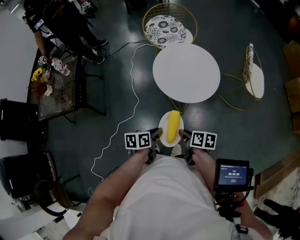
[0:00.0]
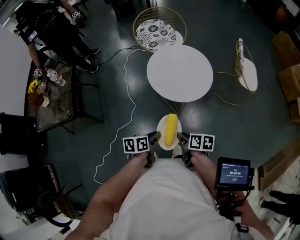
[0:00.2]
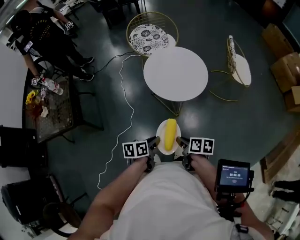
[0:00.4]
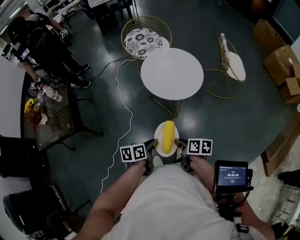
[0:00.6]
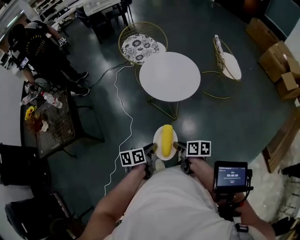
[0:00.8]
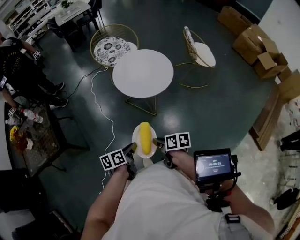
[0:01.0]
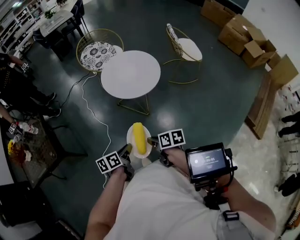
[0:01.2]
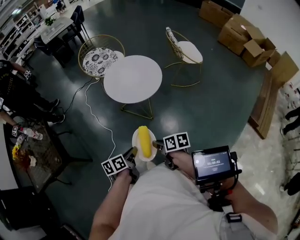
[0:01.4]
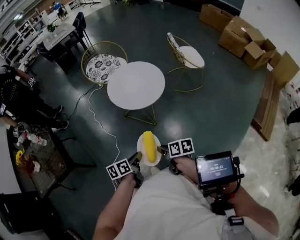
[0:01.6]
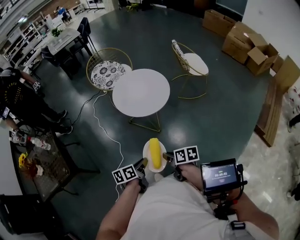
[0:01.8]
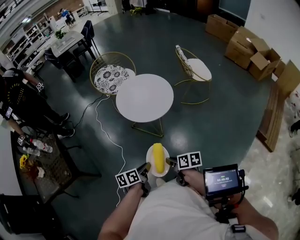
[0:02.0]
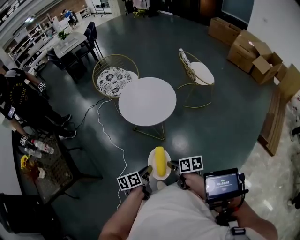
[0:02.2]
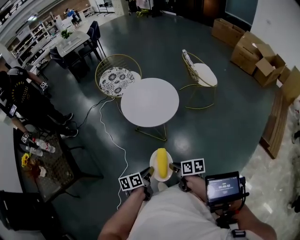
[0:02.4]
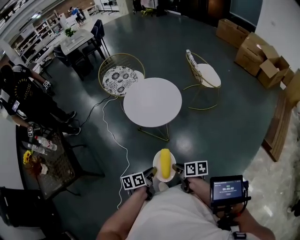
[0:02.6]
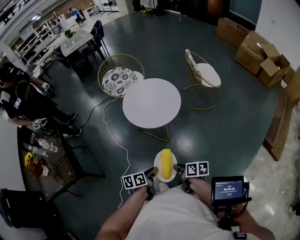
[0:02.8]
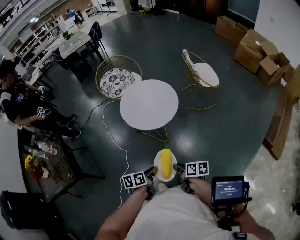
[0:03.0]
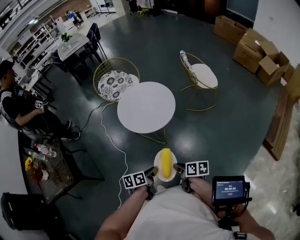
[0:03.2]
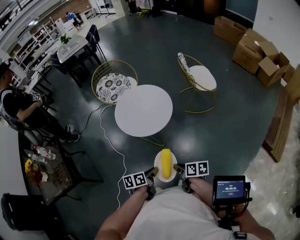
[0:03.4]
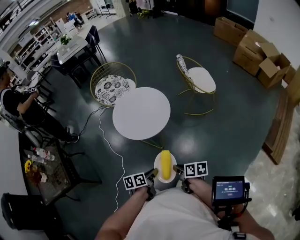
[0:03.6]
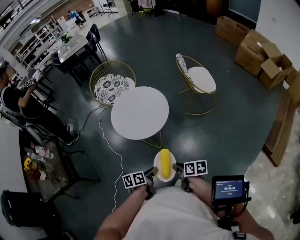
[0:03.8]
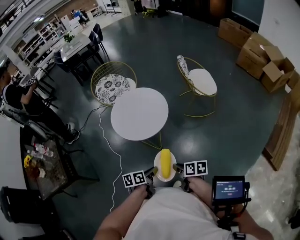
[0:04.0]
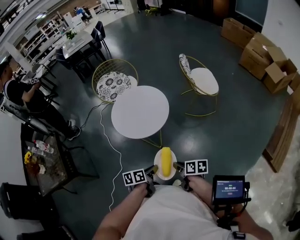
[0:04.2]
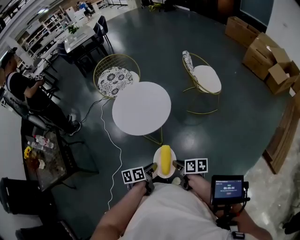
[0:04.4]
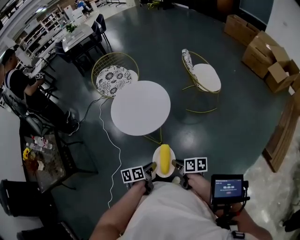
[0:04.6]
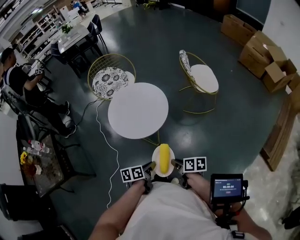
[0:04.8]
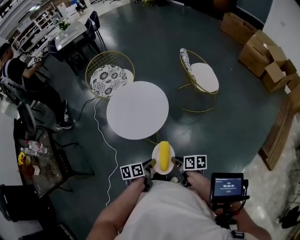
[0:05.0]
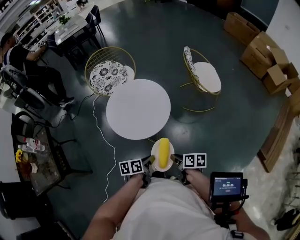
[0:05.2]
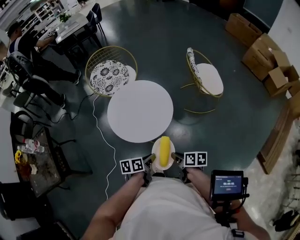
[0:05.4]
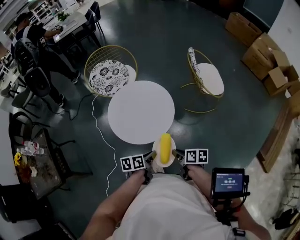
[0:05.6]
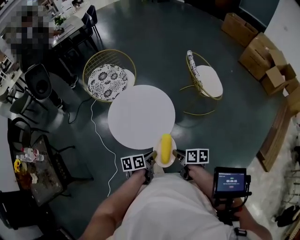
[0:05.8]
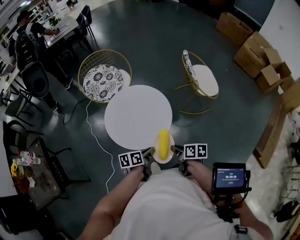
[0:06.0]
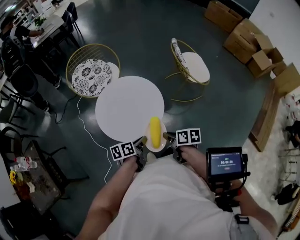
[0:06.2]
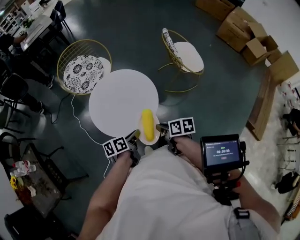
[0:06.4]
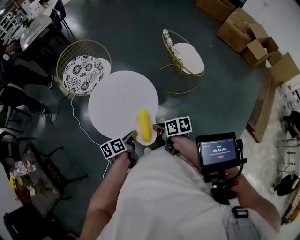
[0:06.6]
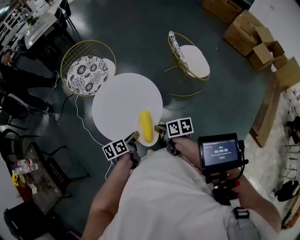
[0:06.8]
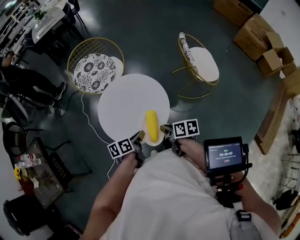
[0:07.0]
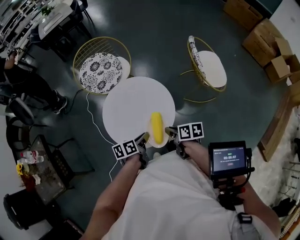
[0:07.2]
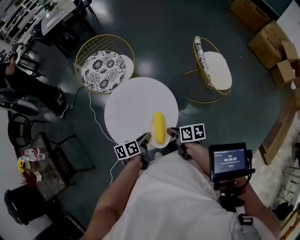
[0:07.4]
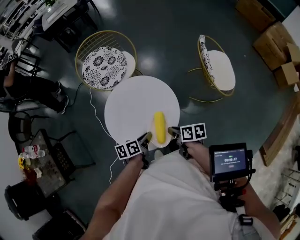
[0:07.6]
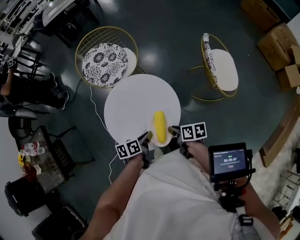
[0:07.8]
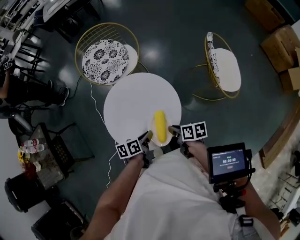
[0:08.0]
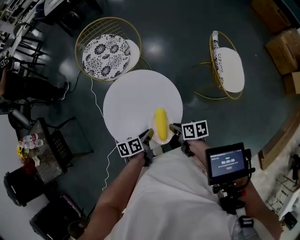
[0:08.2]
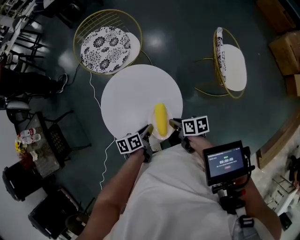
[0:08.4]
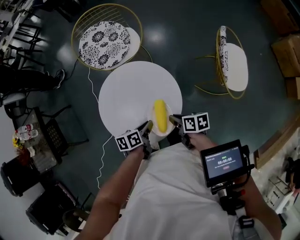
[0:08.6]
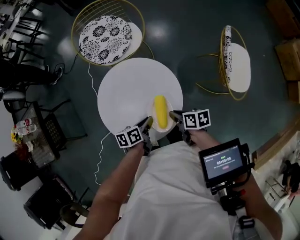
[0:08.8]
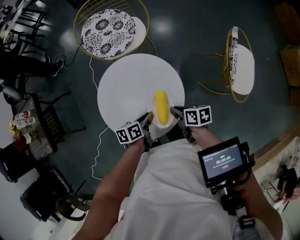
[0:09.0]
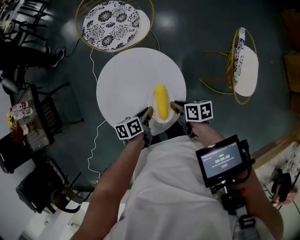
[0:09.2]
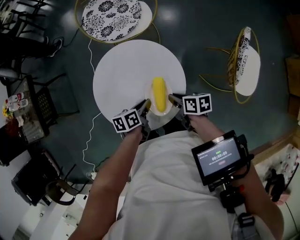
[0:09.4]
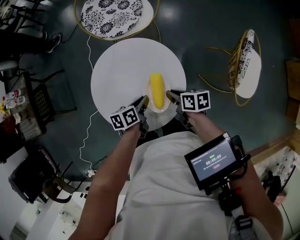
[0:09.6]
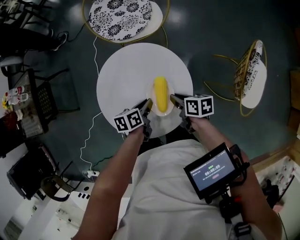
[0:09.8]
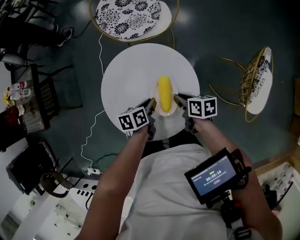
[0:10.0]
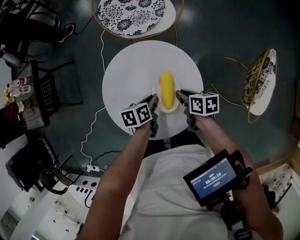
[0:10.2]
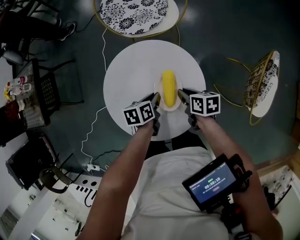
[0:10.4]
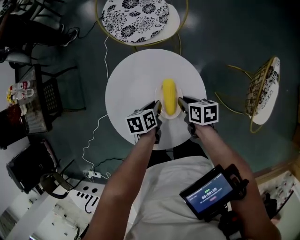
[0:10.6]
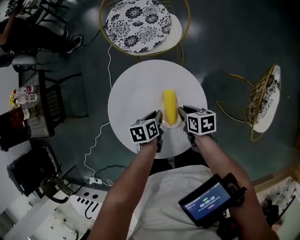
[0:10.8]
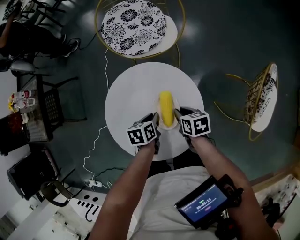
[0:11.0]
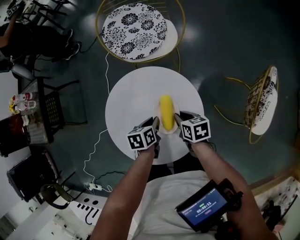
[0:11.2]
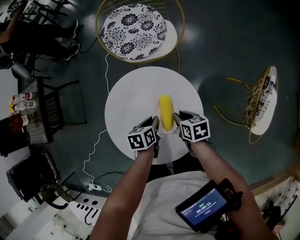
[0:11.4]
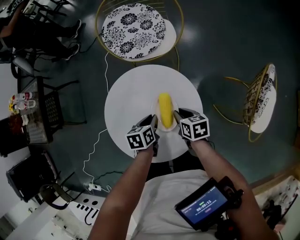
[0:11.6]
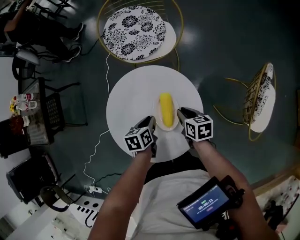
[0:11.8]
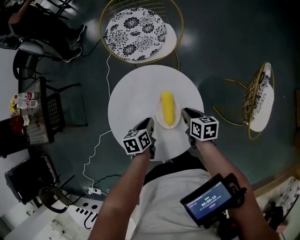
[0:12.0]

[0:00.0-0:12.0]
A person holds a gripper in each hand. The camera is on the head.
0:00.0 to 0:01.6: The left gripper heads backward and to the left, covering roughly 15 cm. The right gripper heads backward, covering some 15 cm.
0:01.6 to 0:03.0: The grippers both shift to the right by roughly 5 cm.
0:03.0 to 0:04.4: The two grippers go approximately 15 cm to the right and forward.
0:04.4 to 0:06.0: Both grippers travel together forward, some 20 cm.
0:06.0 to 0:07.6: Both grippers travel together forward, roughly 15 cm.
0:07.6 to 0:09.0: Both grippers move forward and downward, about 10 cm.
0:09.0 to 0:10.4: Both grippers travel together forward and downward, roughly 10 cm.
0:10.4 to 0:12.0: There are only small adjustments of the grippers.

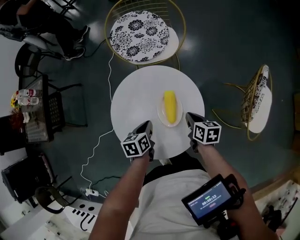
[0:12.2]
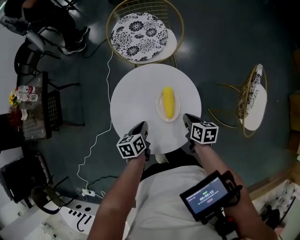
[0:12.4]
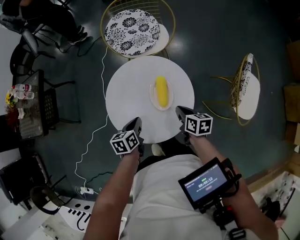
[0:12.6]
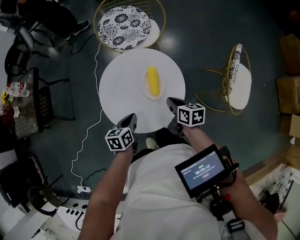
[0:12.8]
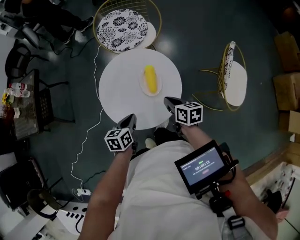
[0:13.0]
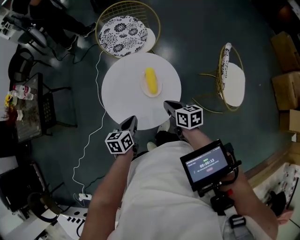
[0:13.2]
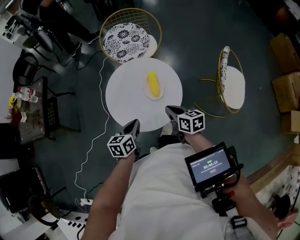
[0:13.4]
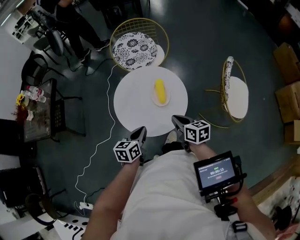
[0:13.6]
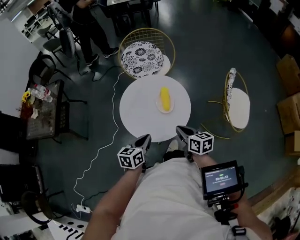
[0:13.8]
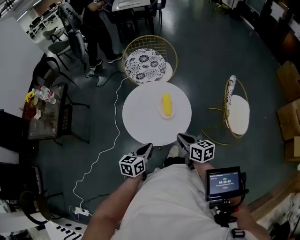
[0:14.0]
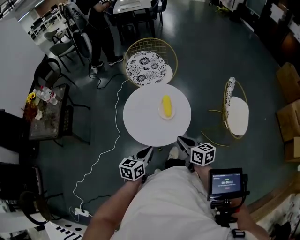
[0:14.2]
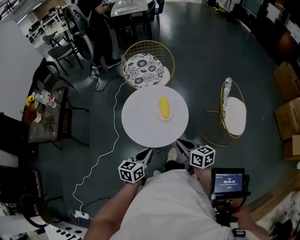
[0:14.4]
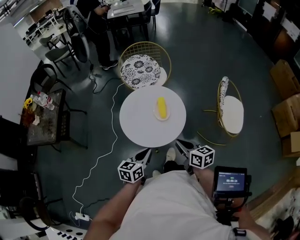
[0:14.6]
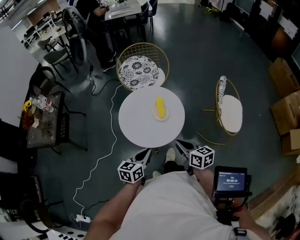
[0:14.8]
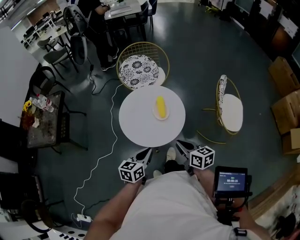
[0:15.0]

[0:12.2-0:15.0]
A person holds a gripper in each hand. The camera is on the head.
0:12.2 to 0:13.6: The two grippers go about 20 cm backward and upward. The left gripper swivels about 20 degrees.
0:13.6 to 0:15.0: The grippers both shift backward and upward by some 10 cm.

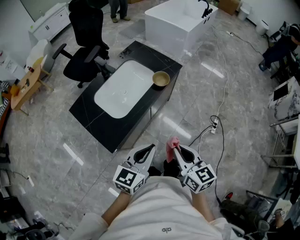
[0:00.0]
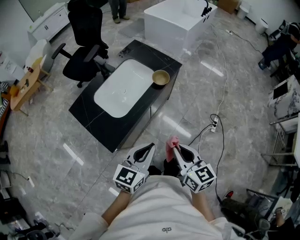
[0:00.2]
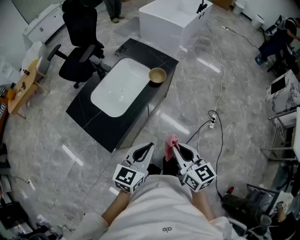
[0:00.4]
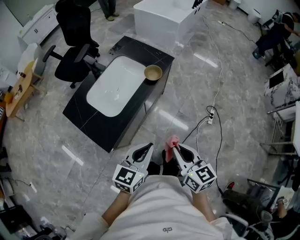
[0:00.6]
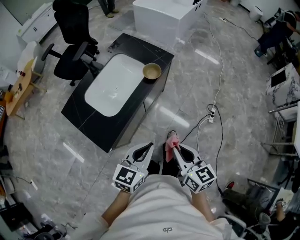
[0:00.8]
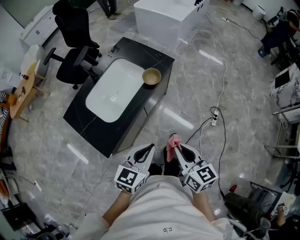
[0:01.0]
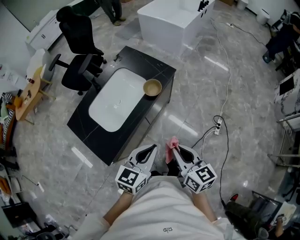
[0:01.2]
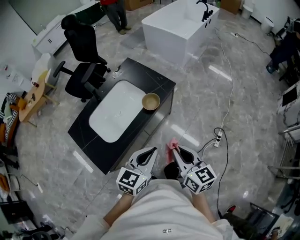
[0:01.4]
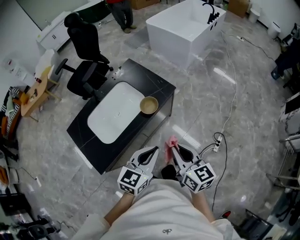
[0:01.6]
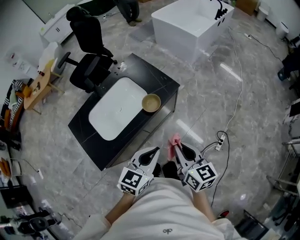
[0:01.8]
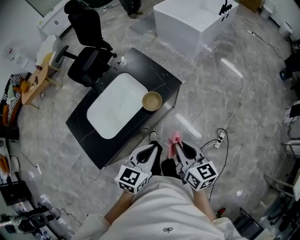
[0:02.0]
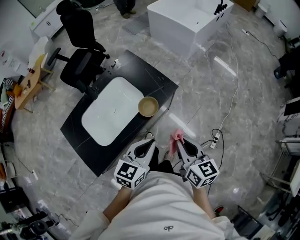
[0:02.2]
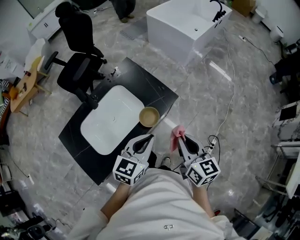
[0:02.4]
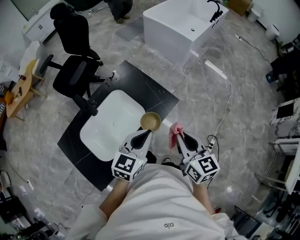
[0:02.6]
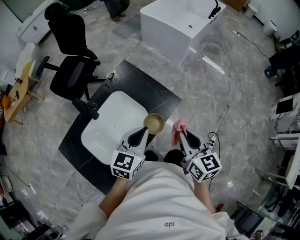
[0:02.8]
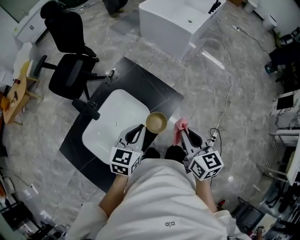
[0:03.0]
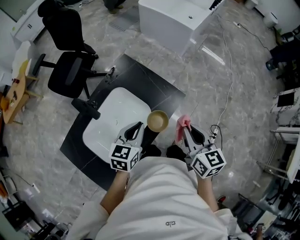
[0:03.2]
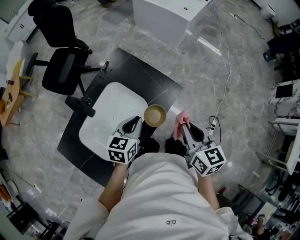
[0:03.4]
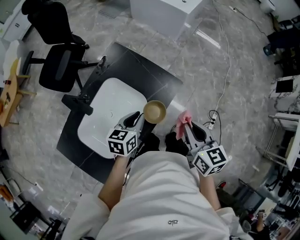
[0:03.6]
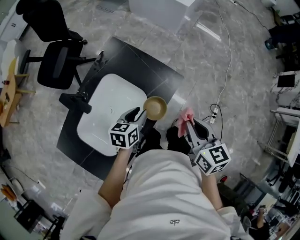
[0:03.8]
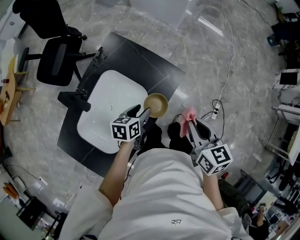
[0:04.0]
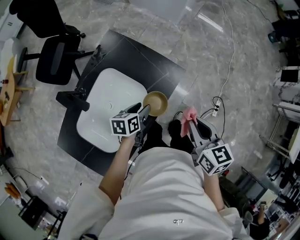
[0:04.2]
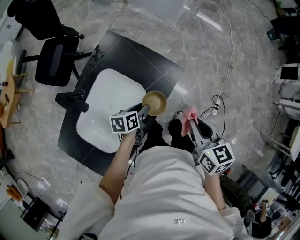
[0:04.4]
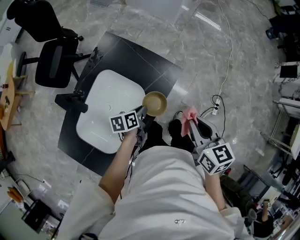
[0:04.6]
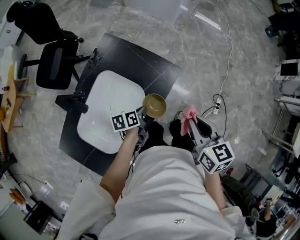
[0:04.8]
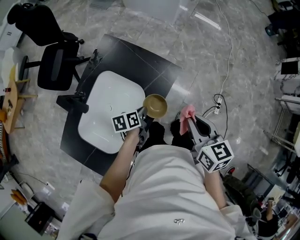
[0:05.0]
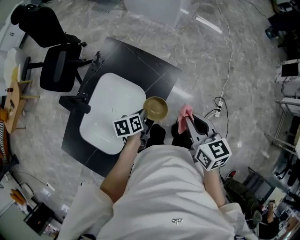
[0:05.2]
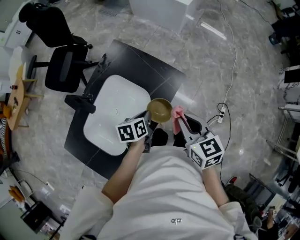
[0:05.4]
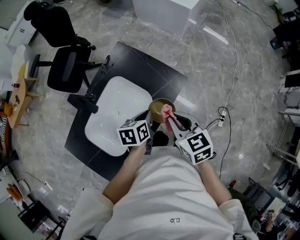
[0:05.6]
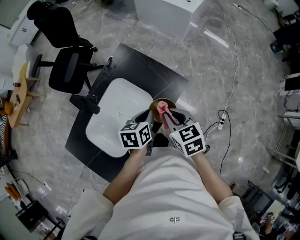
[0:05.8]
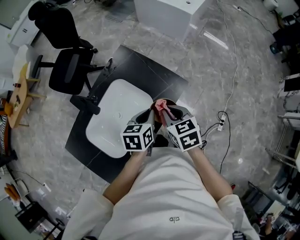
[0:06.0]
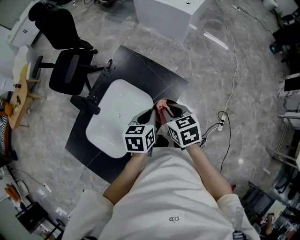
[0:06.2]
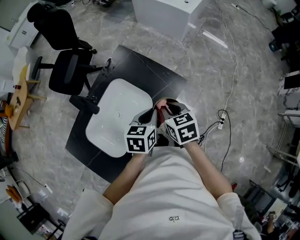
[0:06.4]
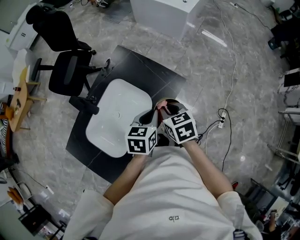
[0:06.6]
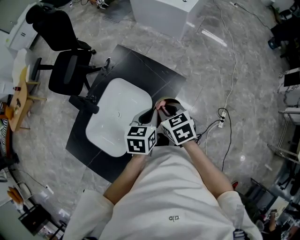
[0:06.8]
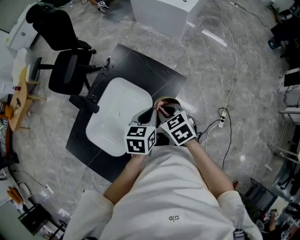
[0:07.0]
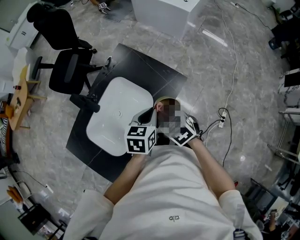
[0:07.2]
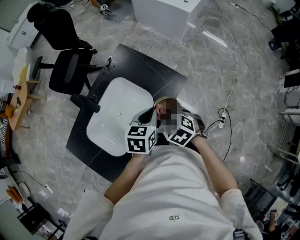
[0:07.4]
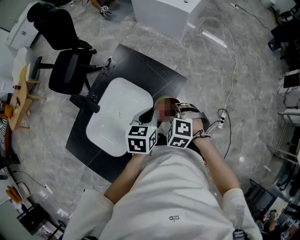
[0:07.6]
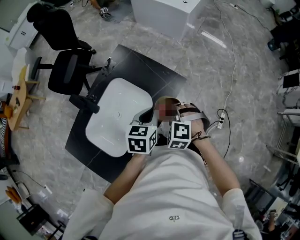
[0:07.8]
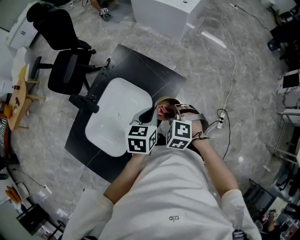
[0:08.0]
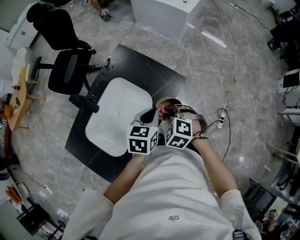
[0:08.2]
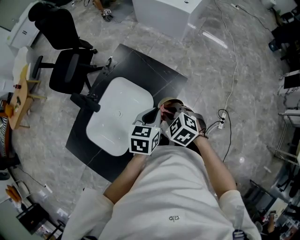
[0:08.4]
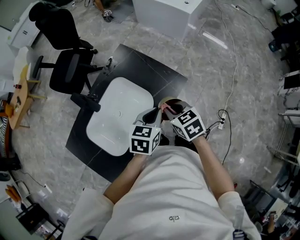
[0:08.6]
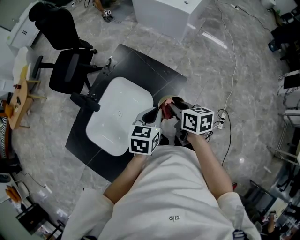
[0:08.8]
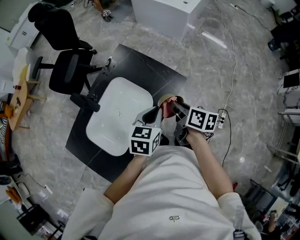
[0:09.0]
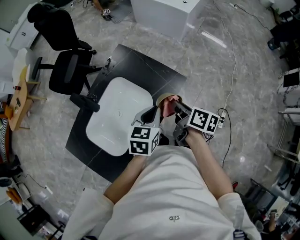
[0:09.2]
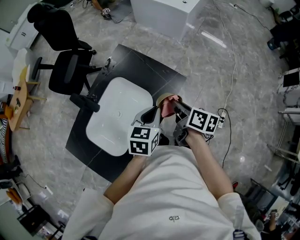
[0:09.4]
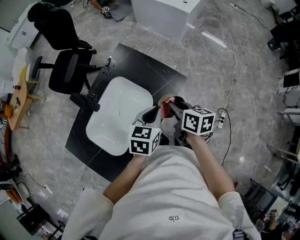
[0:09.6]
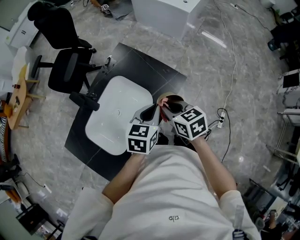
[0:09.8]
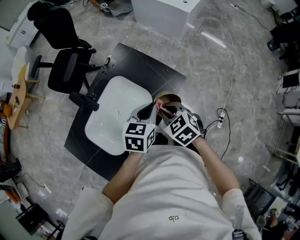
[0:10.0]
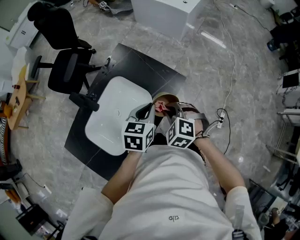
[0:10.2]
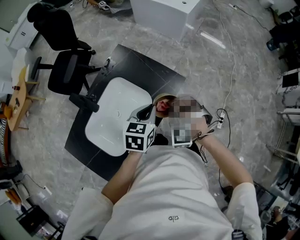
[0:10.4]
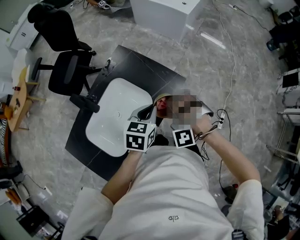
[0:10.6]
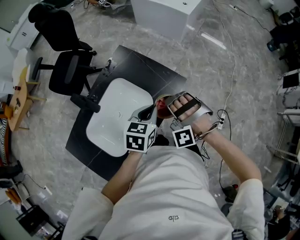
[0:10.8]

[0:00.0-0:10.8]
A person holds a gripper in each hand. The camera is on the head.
0:00.0 to 0:01.6: Both grippers move forward and to the right, roughly 20 cm.
0:01.6 to 0:03.0: The right gripper is displaced forward by roughly 25 cm. The left gripper travels forward and to the left by about 30 cm.
0:03.0 to 0:04.6: The left gripper travels downward by roughly 20 cm, rolls counterclockwise, seen from behind, by about 40 degrees, and opens, then closes again; the right gripper shifts by about 5 cm.
0:04.6 to 0:06.2: The right gripper goes some 10 cm to the left. Meanwhile the left gripper moves upward, approximately 15 cm, and changes its angle by approximately 30 degrees.
0:06.2 to 0:07.8: The right gripper shifts by roughly 5 cm, and rotates around the line of its fingers by approximately 70 degrees, counterclockwise from behind.
0:07.8 to 0:09.2: The right gripper changes place by some 5 cm, and rolls clockwise, seen from behind, by some 110 degrees.
0:09.2 to 0:10.8: The right gripper goes some 5 cm to the left, and rolls counterclockwise, seen from behind, by some 160 degrees.
